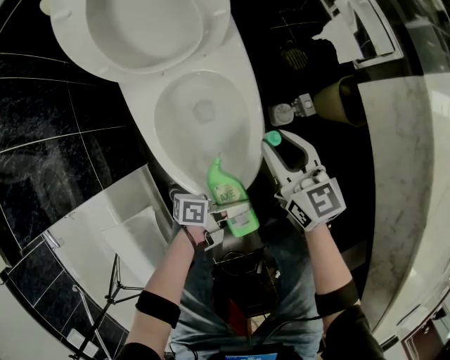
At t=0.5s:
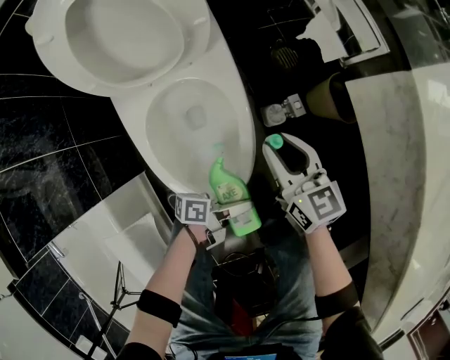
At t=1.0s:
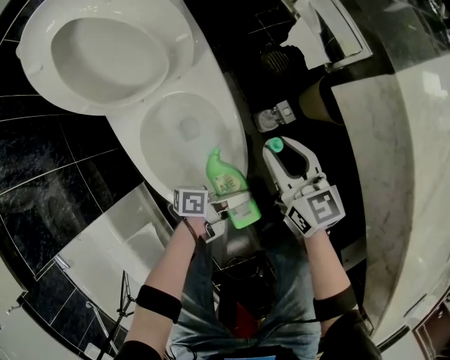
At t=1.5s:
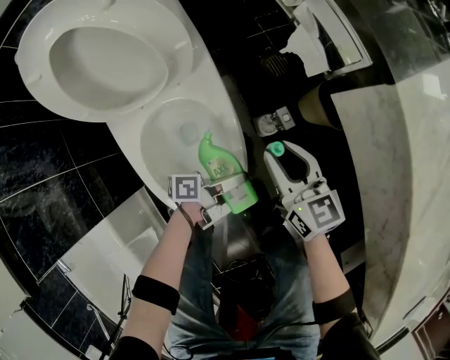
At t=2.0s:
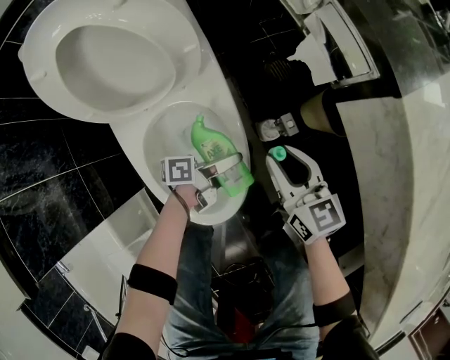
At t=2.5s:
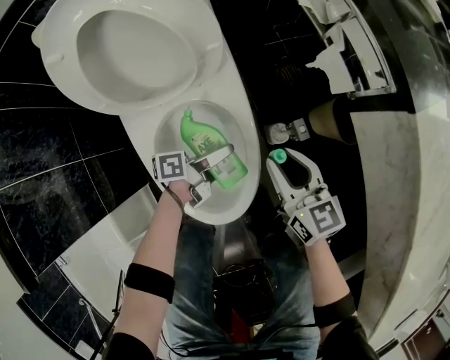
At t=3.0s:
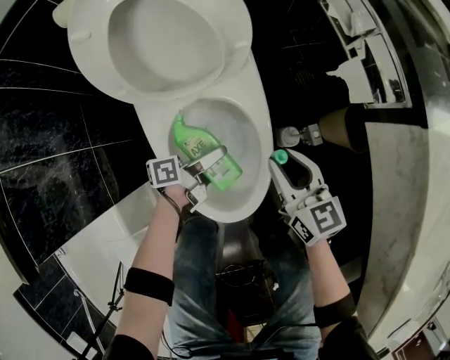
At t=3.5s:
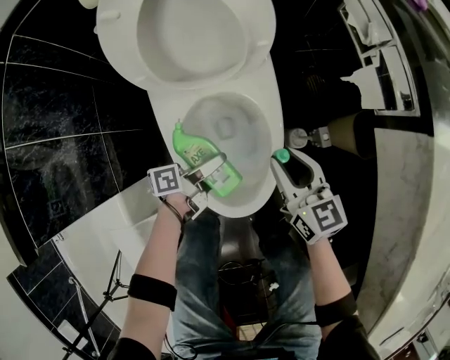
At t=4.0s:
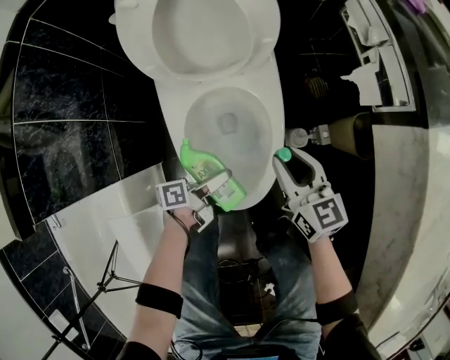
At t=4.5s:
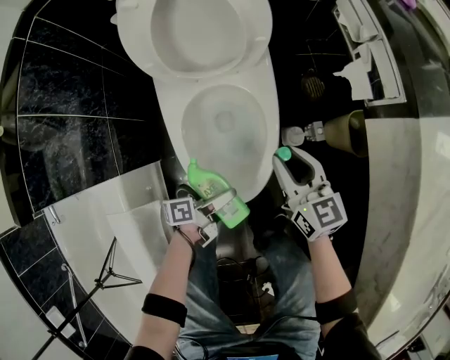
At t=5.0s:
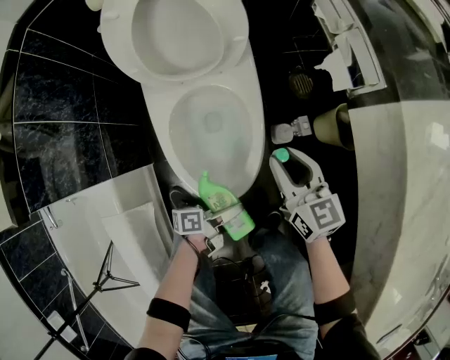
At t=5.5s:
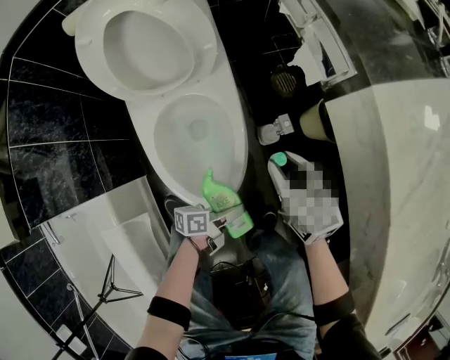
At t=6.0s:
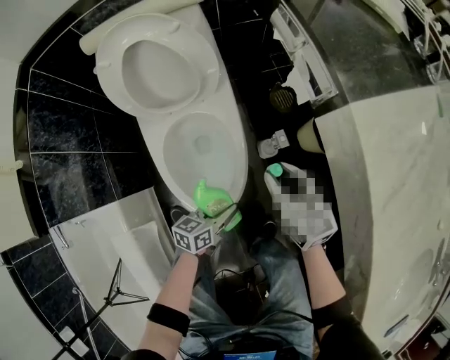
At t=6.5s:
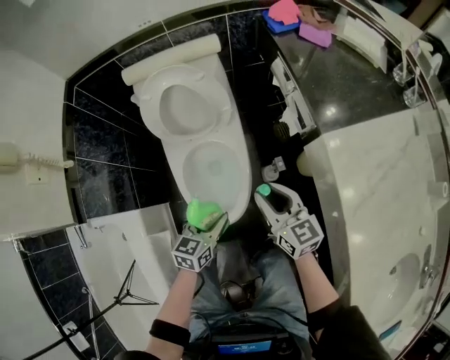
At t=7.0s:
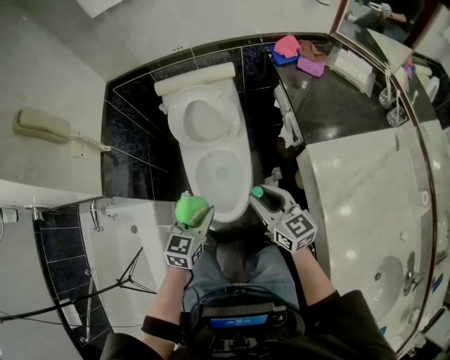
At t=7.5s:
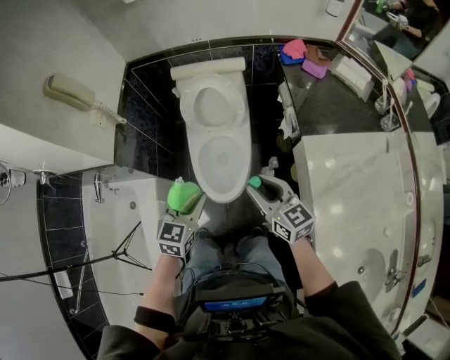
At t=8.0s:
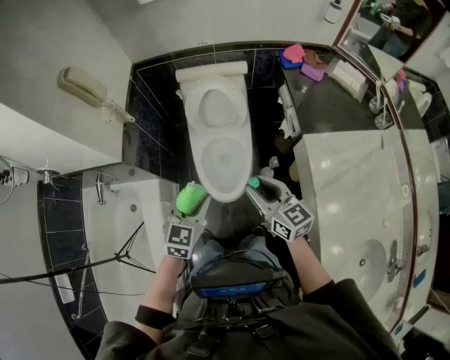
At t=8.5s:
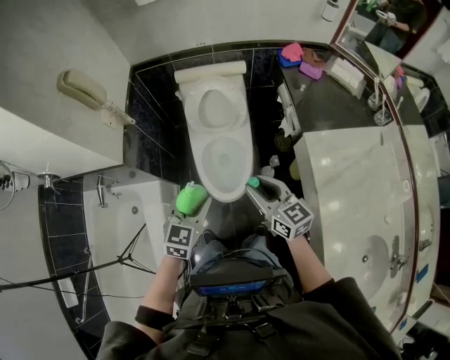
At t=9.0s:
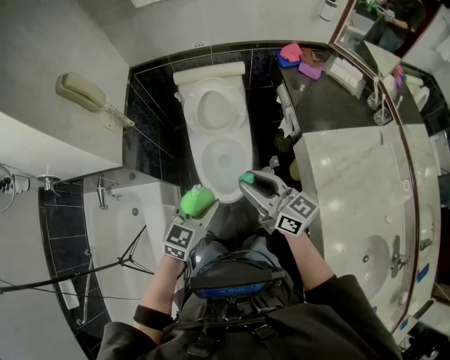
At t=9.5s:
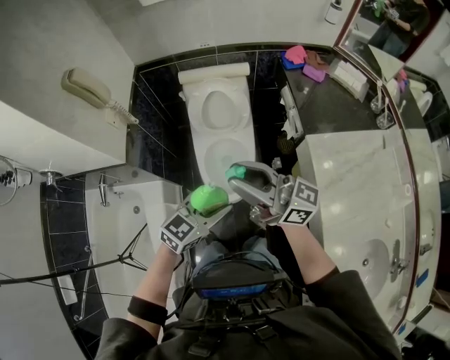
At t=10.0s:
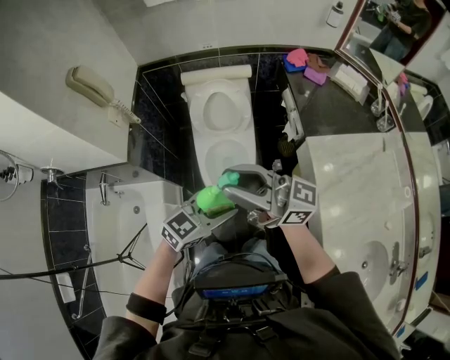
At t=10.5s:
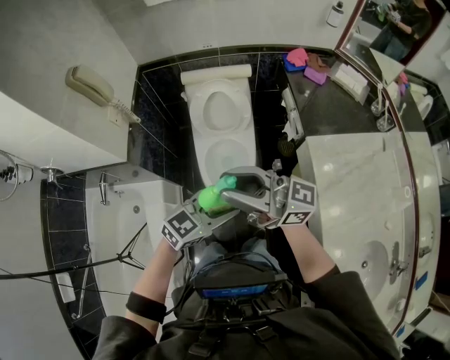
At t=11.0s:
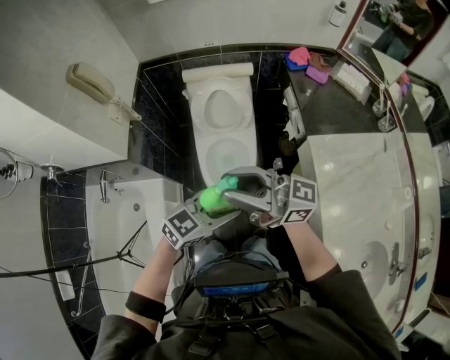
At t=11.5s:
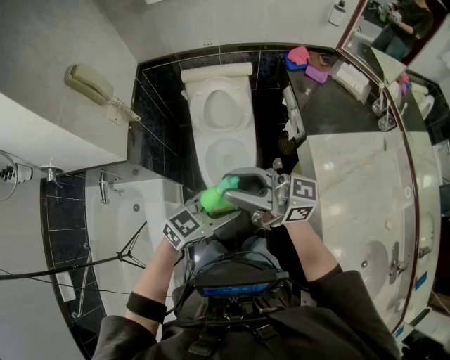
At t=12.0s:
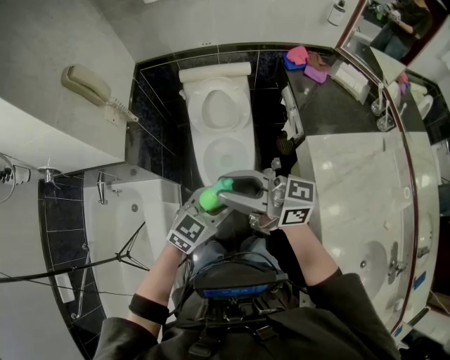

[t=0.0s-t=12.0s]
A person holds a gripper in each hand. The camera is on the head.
t=0.0s to t=2.0s: The left gripper travels forward by approximately 20 cm. The right gripper goes about 5 cm forward.
t=2.0s to t=4.0s: The left gripper goes roughly 15 cm to the left and backward, and turns by approximately 20 degrees. Meanwhile the right gripper shifts some 10 cm to the left.
t=4.0s to t=6.0s: Both grippers travel together to the right and upward, roughly 15 cm. The left gripper changes its angle by some 40 degrees.
t=6.0s to t=8.0s: The grippers both shift upward by some 40 cm. The right gripper rotates approximately 20 degrees. Meanwhile the left gripper changes its angle by some 50 degrees.
t=8.0s to t=10.0s: The left gripper moves approximately 10 cm, and swivels roughly 30 degrees. Meanwhile the right gripper moves upward, roughly 20 cm, and angles its fingers upward, by approximately 40 degrees.
t=10.0s to t=12.0s: There are only small adjustments of the grippers.

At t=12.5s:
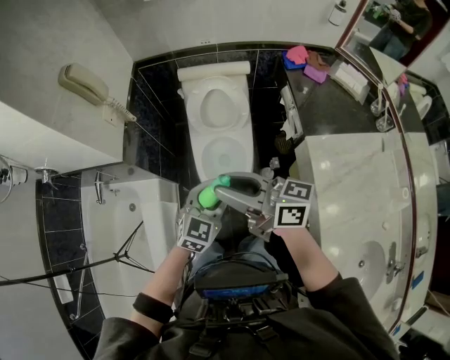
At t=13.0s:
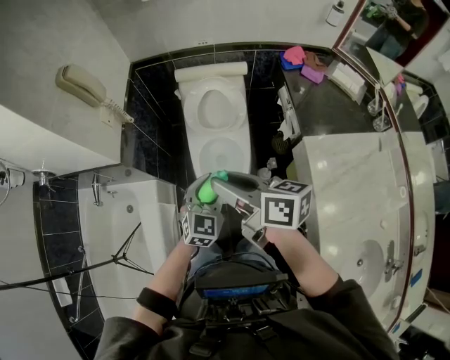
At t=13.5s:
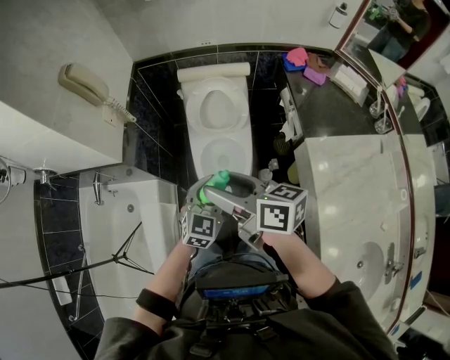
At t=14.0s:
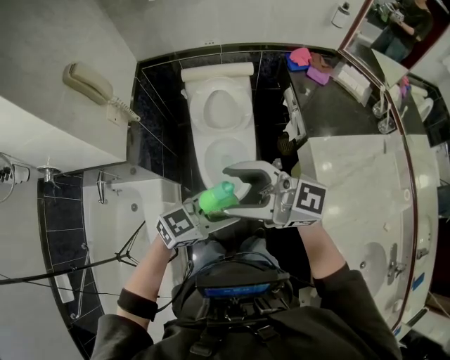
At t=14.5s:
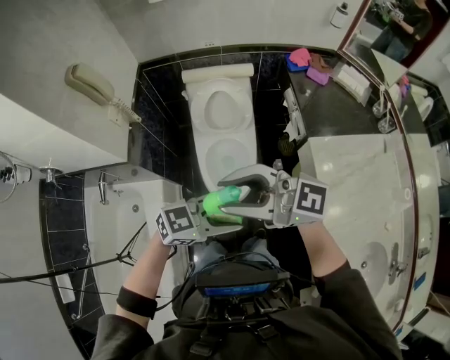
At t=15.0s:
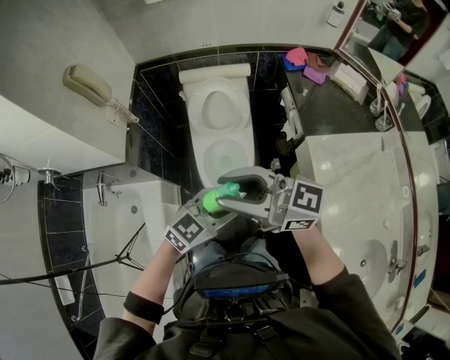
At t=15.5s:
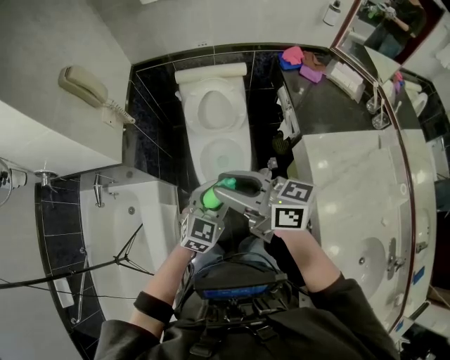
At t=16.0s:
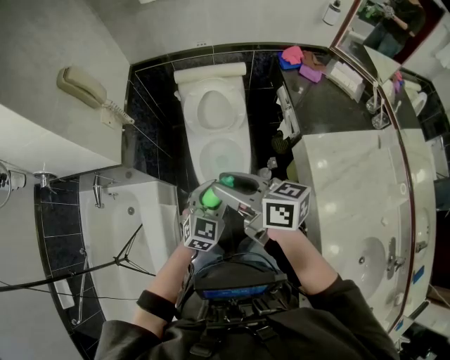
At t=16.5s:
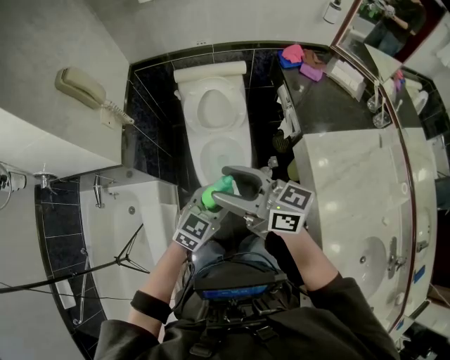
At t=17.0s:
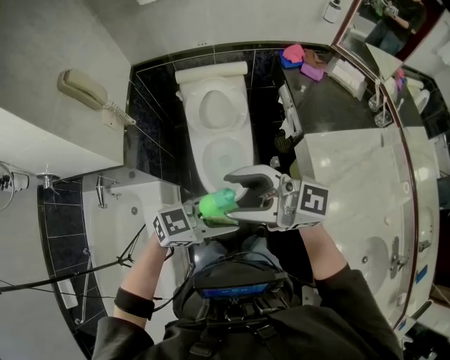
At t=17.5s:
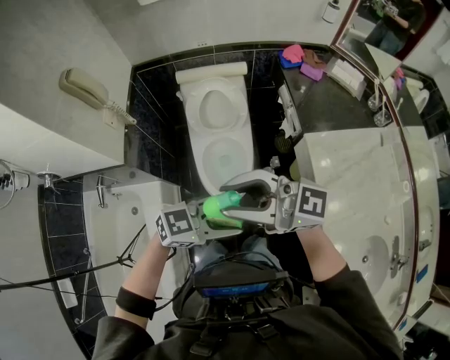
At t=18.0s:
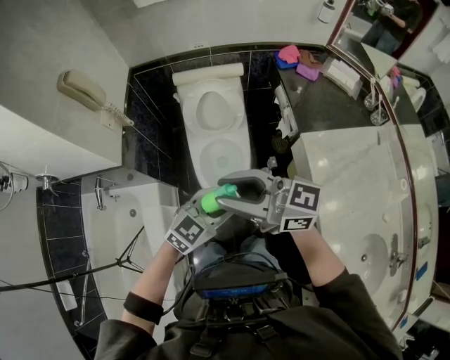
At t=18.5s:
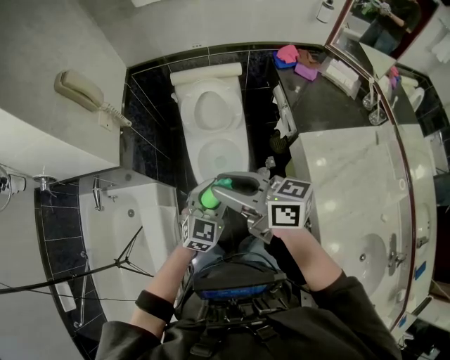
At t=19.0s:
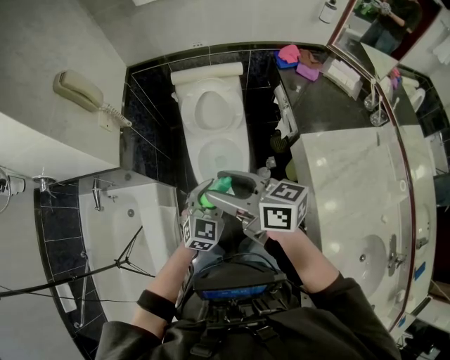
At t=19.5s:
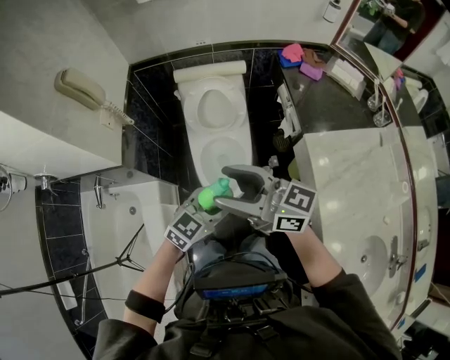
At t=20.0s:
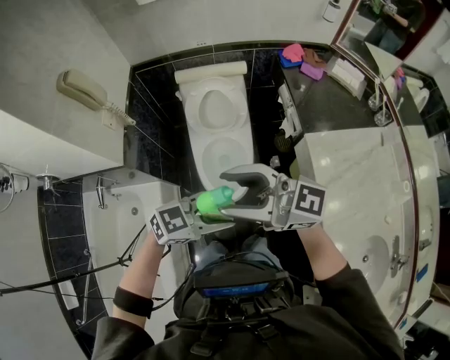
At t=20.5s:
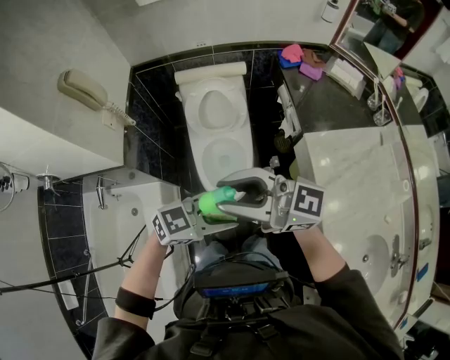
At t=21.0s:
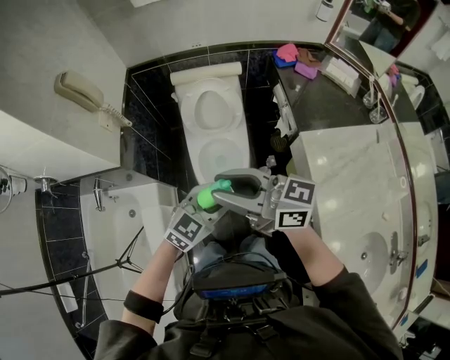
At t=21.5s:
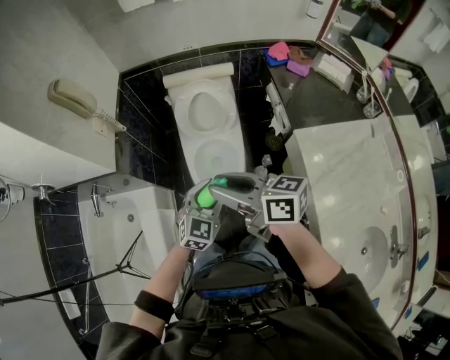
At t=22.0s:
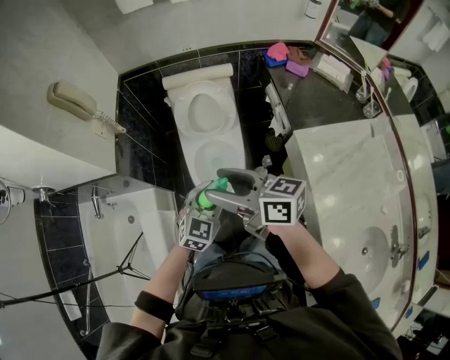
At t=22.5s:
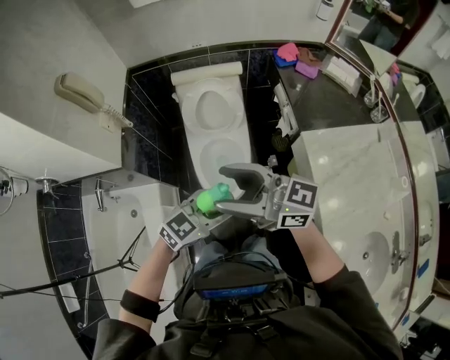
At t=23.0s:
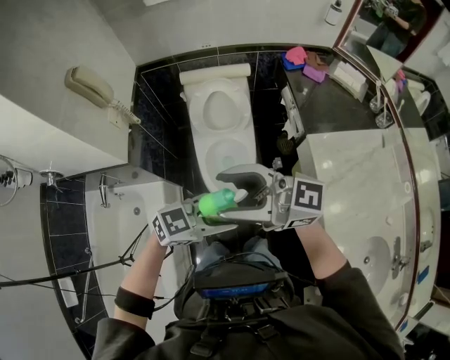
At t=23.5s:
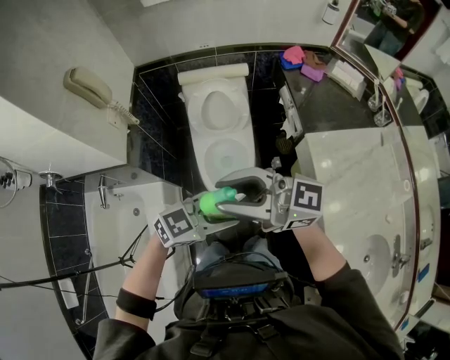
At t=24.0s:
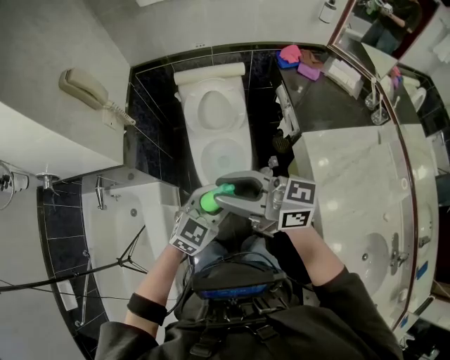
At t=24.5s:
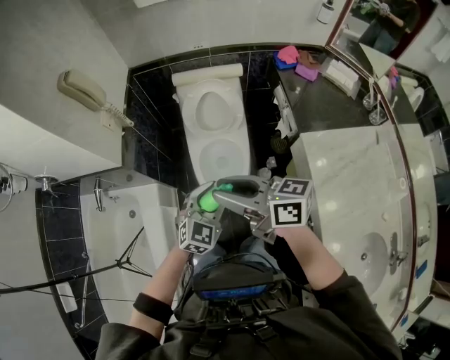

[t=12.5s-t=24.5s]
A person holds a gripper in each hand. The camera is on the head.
t=12.5s to t=14.5s: The right gripper is displaced upward by some 10 cm, turns by roughly 40 degrees, and opens and closes again, while the left gripper changes place by about 10 cm, and rotates roughly 50 degrees.
t=14.5s to t=16.5s: The right gripper is displaced downward by roughly 10 cm, turns by about 40 degrees, and opens up. Meanwhile the left gripper shifts by about 10 cm, and swivels approximately 30 degrees.
t=16.5s to t=18.5s: The right gripper moves roughly 10 cm upward and comes back, and closes up.
t=18.5s to t=20.5s: The left gripper shifts by approximately 10 cm, and changes its angle by roughly 50 degrees. The right gripper travels upward by about 5 cm, changes its angle by about 40 degrees, and opens, then closes again.
t=20.5s to t=22.5s: The left gripper reaches about 10 cm downward, then returns. Meanwhile the right gripper opens.
t=22.5s to t=24.5s: The right gripper turns by approximately 30 degrees, and closes its fingers; the left gripper ends up roughly 5 cm from where it was, and swivels approximately 30 degrees.

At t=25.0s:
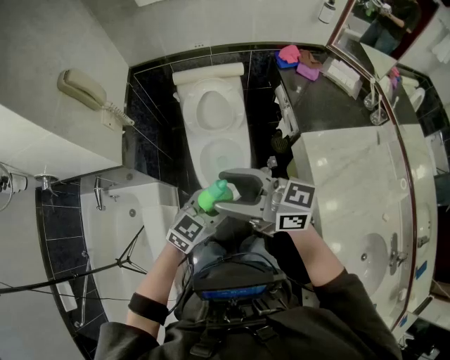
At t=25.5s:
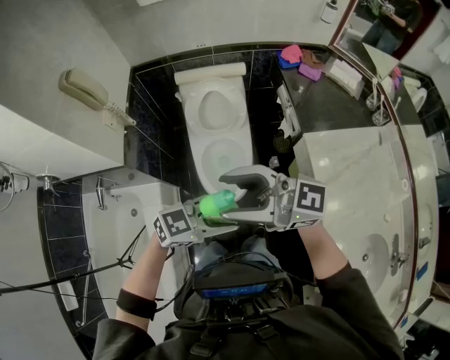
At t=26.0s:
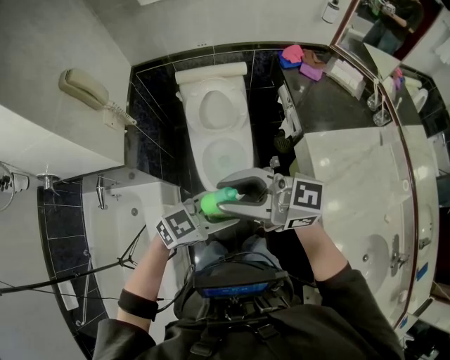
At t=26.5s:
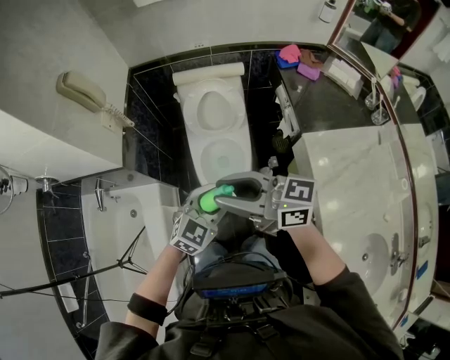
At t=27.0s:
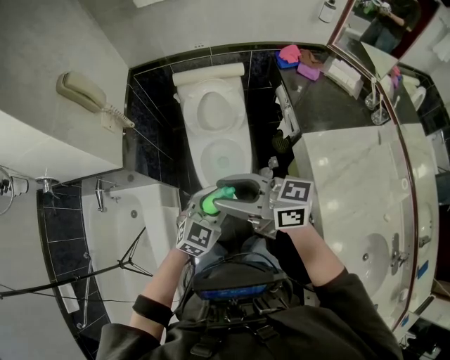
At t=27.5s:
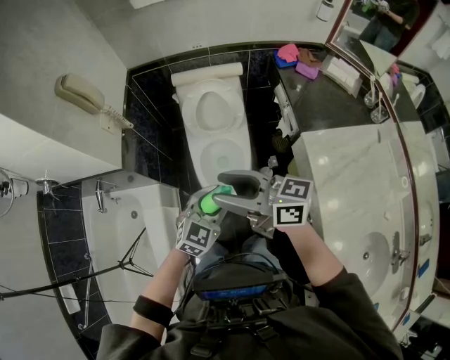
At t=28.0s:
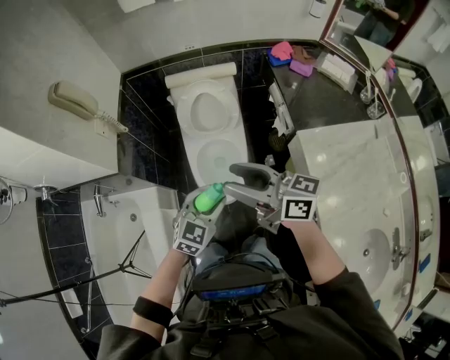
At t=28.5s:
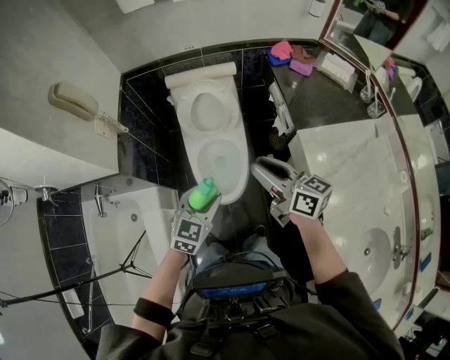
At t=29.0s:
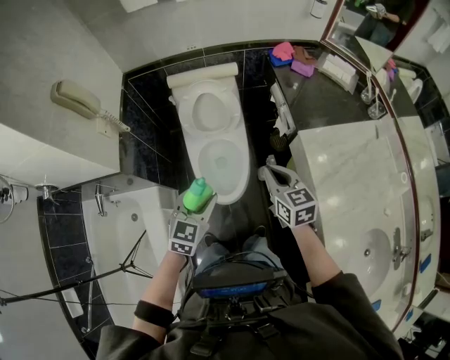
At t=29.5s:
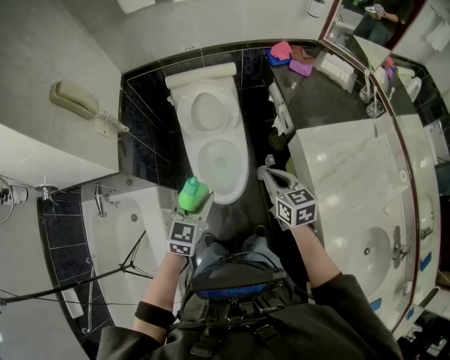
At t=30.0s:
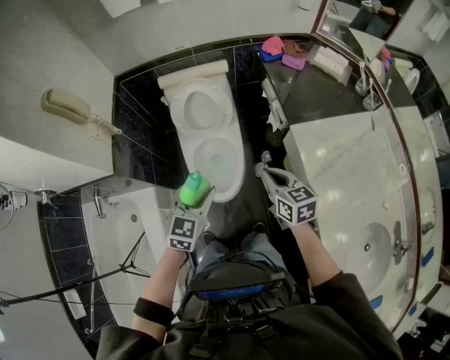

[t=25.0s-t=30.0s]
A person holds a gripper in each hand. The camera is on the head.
t=27.5s to t=30.0s: The right gripper moves to the right and downward, about 25 cm, tips its fingers downward by roughly 30 degrees, and closes up.
